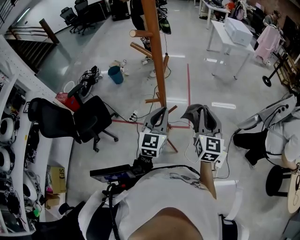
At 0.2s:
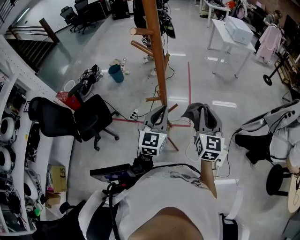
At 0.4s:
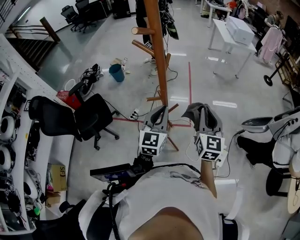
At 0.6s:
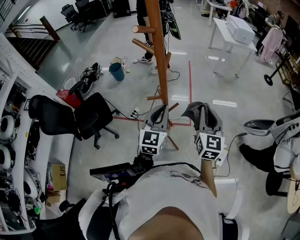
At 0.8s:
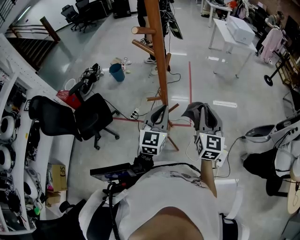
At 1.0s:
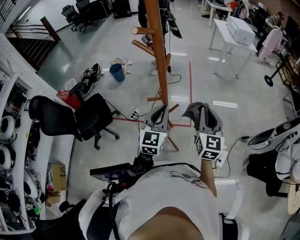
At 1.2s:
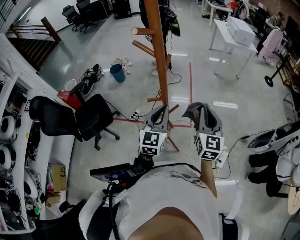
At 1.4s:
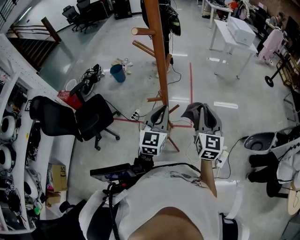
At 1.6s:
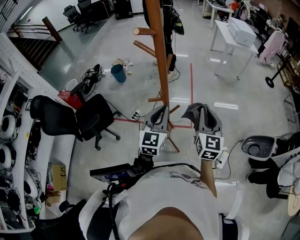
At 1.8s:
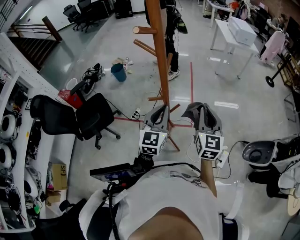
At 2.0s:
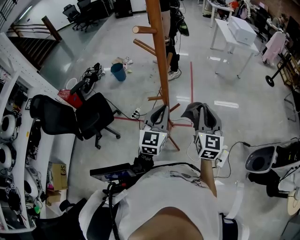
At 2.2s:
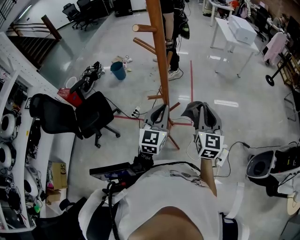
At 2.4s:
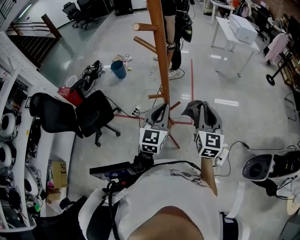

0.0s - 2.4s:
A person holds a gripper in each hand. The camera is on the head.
0.0s - 1.2s: Neither gripper changes place.
1.2s - 2.4s: Both grippers stay put.

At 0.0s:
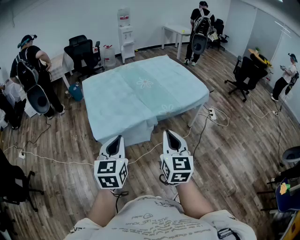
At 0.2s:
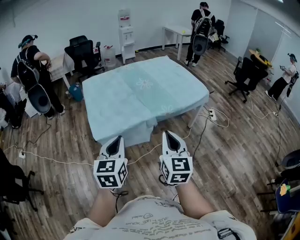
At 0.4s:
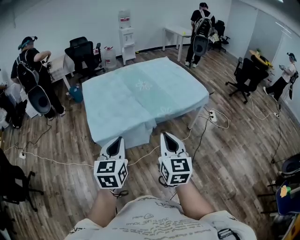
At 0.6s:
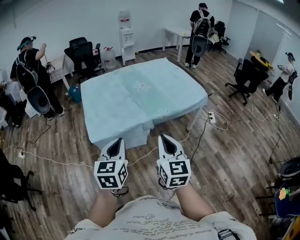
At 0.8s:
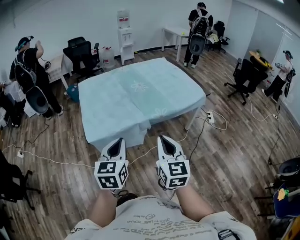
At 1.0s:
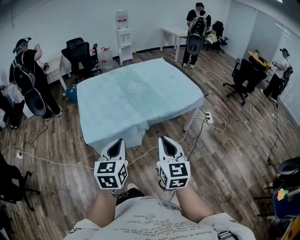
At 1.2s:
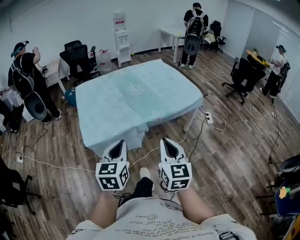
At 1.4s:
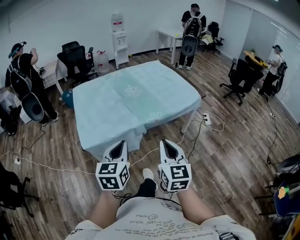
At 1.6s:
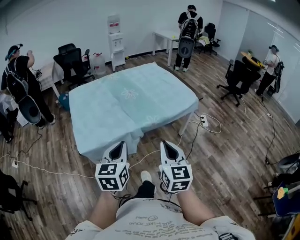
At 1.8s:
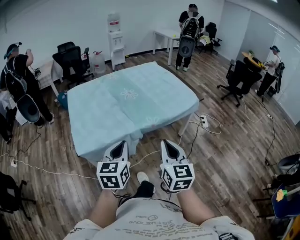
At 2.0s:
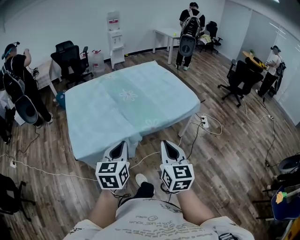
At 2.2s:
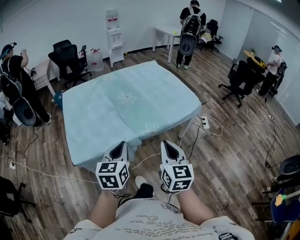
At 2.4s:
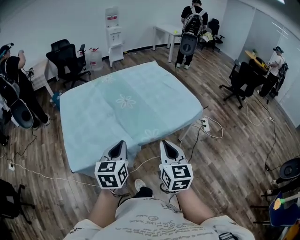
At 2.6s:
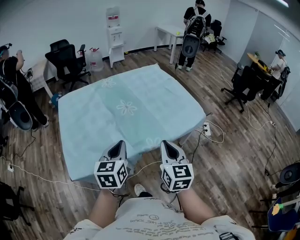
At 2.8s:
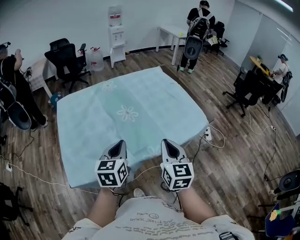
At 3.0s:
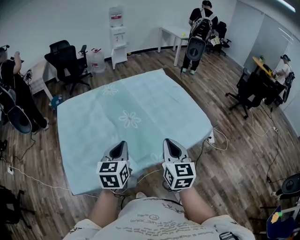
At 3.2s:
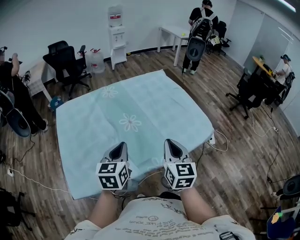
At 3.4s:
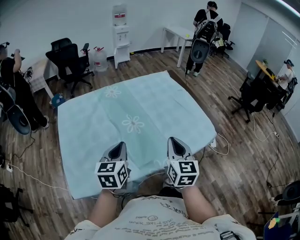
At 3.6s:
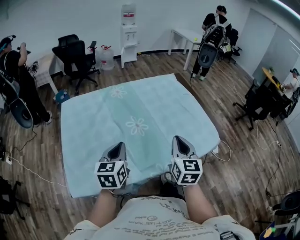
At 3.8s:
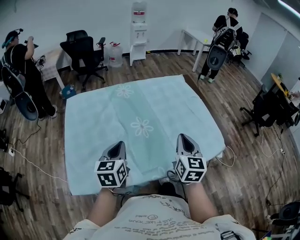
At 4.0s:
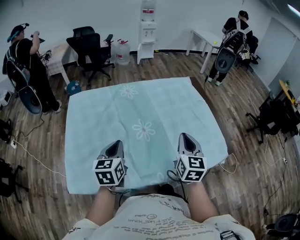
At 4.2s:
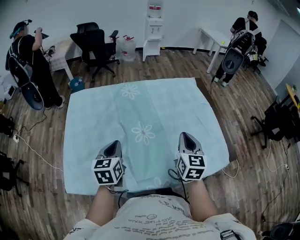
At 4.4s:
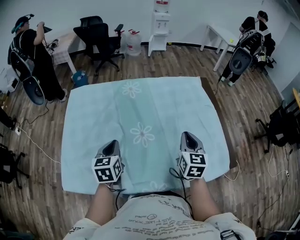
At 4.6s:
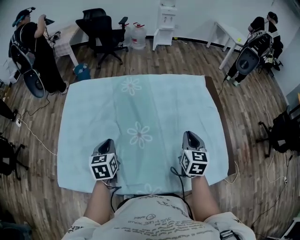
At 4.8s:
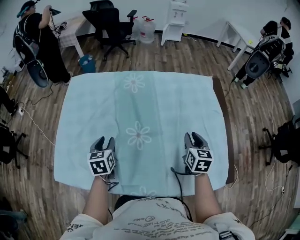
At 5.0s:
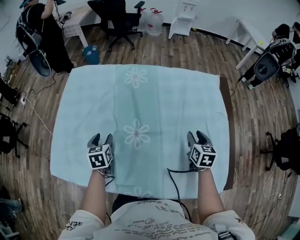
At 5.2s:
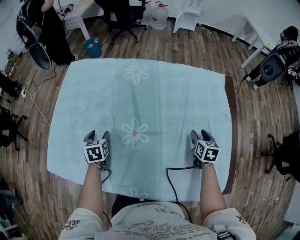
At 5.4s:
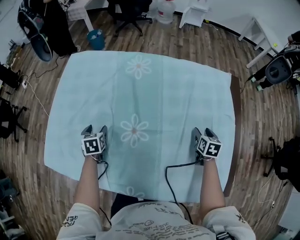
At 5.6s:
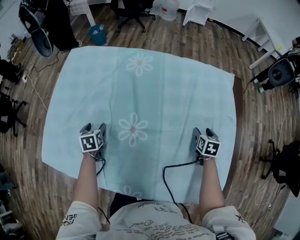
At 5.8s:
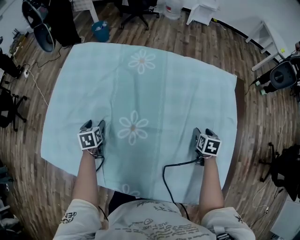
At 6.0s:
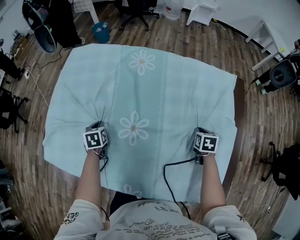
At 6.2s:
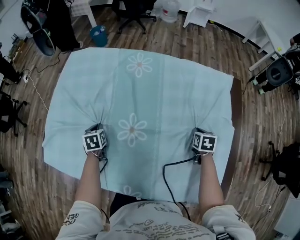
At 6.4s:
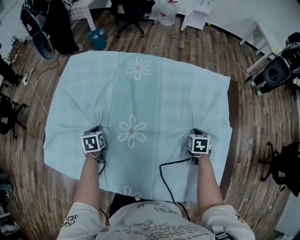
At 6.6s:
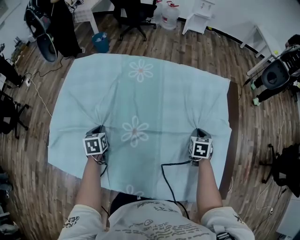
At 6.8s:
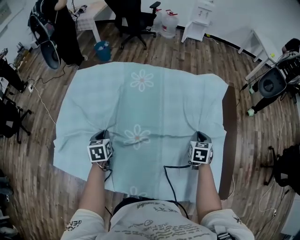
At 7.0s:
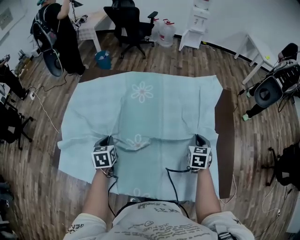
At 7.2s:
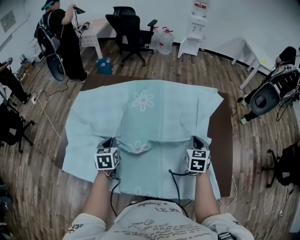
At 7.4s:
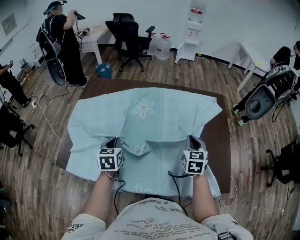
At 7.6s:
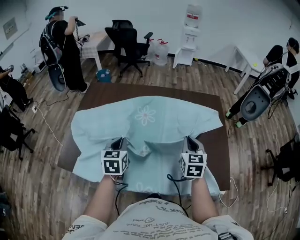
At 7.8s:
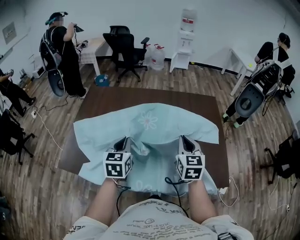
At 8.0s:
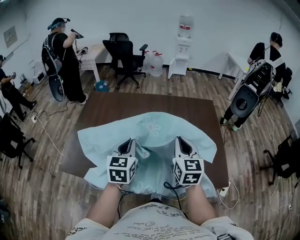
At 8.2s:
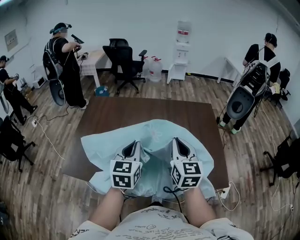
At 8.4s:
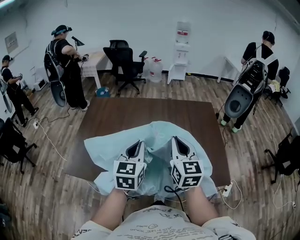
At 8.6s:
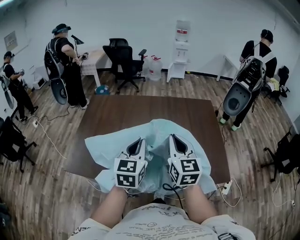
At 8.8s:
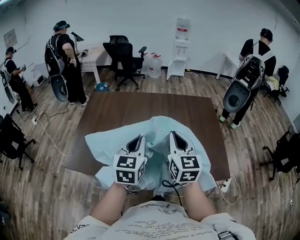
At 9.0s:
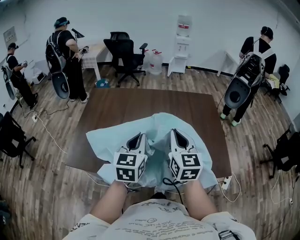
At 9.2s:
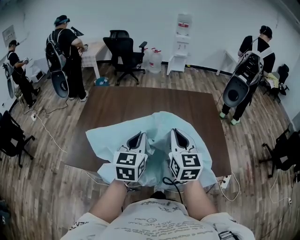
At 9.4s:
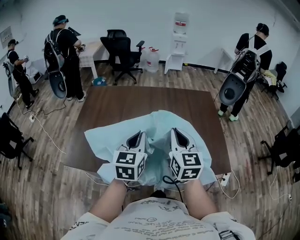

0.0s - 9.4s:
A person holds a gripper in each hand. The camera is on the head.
0.0s - 1.6s: The left gripper moves to the right and forward, approximately 15 cm, while the right gripper shifts roughly 10 cm to the right.
1.6s - 3.2s: Both grippers move forward, approximately 35 cm.
3.2s - 4.8s: The left gripper shifts by roughly 25 cm, swivels approximately 40 degrees, and opens up. Meanwhile the right gripper shifts by about 40 cm, rotates approximately 30 degrees, and opens.
4.8s - 6.2s: The right gripper is displaced downward, forward and to the right by approximately 20 cm, turns by some 30 degrees, and closes its fingers, while the left gripper heads downward, covering about 15 cm, changes its angle by about 20 degrees, and closes up.
6.2s - 7.8s: The left gripper goes about 35 cm upward, backward and to the right, and angles its fingers upward, by roughly 30 degrees. Meanwhile the right gripper goes approximately 35 cm upward, backward and to the left, and angles its fingers upward, by some 40 degrees.
7.8s - 9.4s: The left gripper shifts approximately 10 cm backward and upward, while the right gripper heads backward, to the left and upward, covering some 15 cm.

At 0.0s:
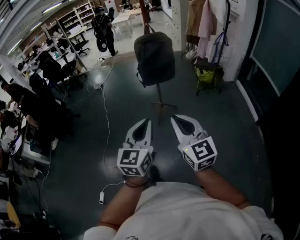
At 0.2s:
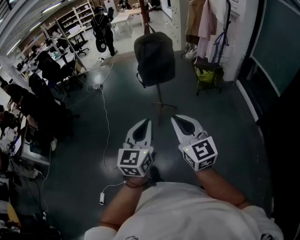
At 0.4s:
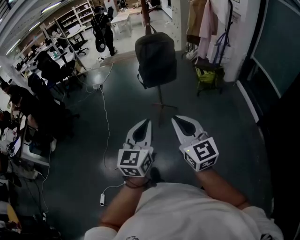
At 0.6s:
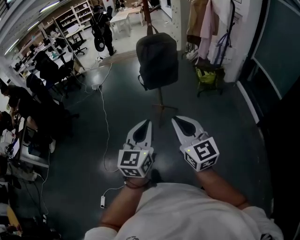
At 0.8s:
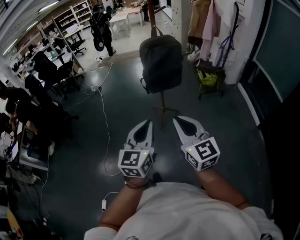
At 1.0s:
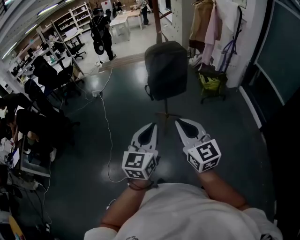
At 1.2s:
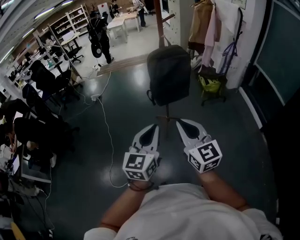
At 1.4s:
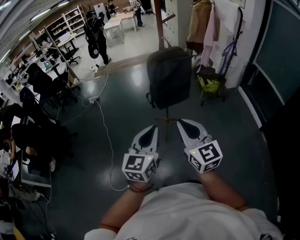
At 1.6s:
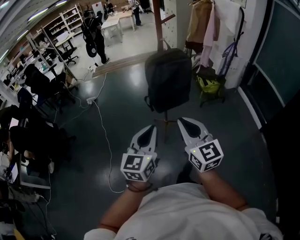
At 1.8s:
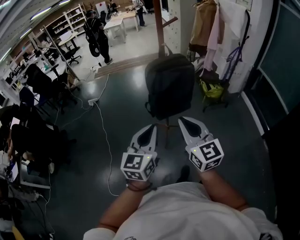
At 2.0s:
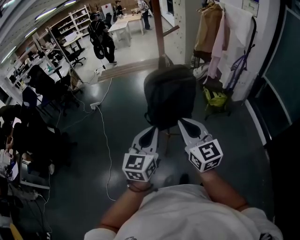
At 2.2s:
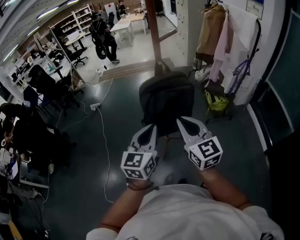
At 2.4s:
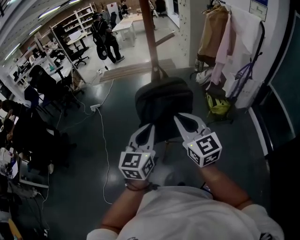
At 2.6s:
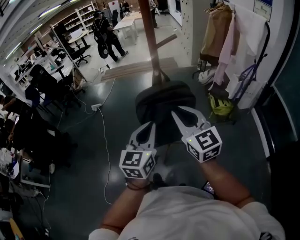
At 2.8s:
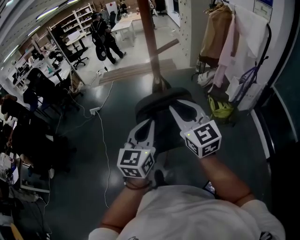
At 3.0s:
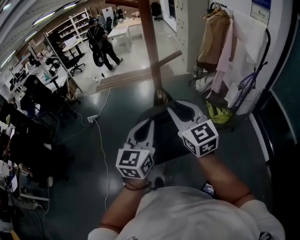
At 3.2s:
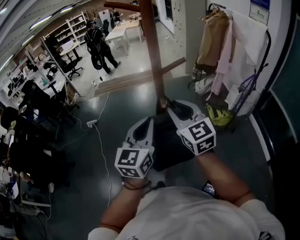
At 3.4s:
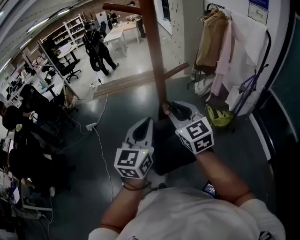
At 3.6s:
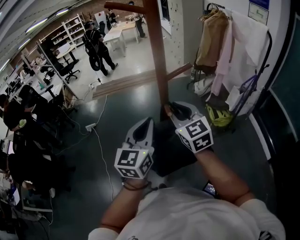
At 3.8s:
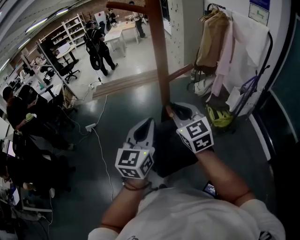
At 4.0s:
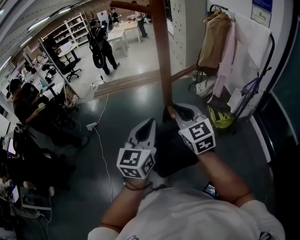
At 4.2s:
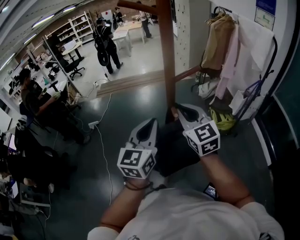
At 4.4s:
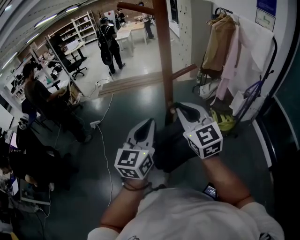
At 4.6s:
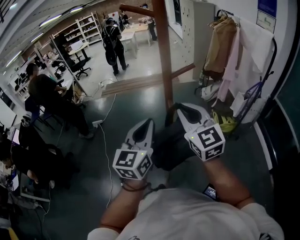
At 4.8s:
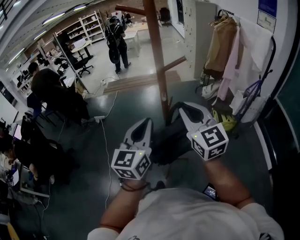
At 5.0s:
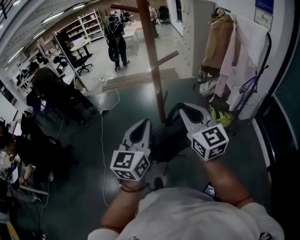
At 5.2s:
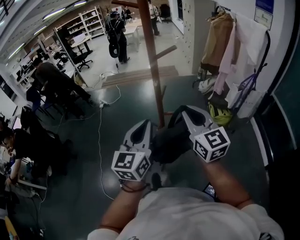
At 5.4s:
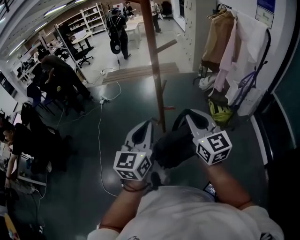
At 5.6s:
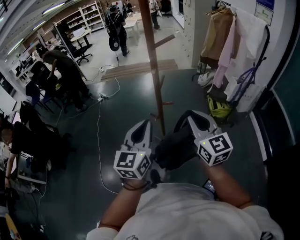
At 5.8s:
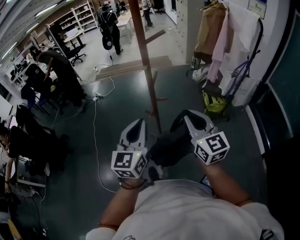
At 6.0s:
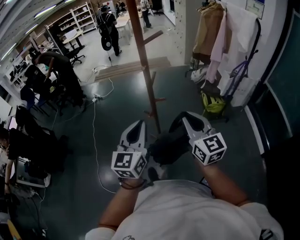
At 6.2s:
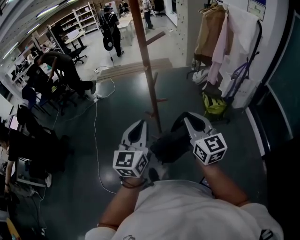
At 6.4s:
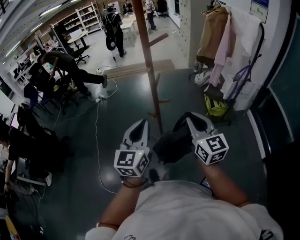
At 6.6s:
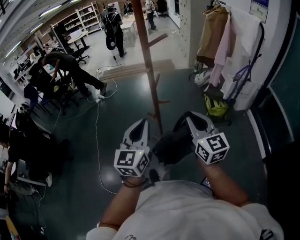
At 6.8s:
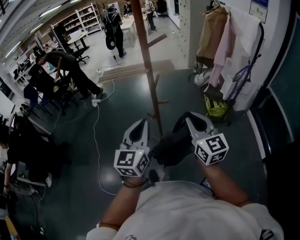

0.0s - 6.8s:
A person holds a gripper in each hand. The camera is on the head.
0.0s - 1.4s: Both grippers travel together forward and to the left, roughly 30 cm.
1.4s - 2.8s: The two grippers travel together, forward, about 40 cm.
2.8s - 4.0s: Both grippers move forward, approximately 15 cm.
4.0s - 5.4s: Both grippers move backward, about 20 cm.
5.4s - 6.8s: The right gripper ends up about 5 cm from where it was.

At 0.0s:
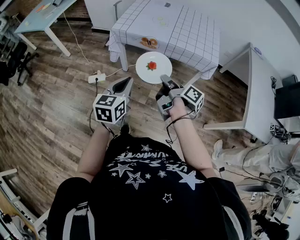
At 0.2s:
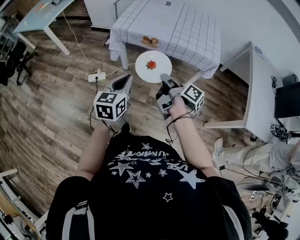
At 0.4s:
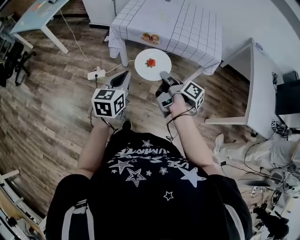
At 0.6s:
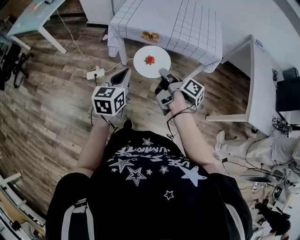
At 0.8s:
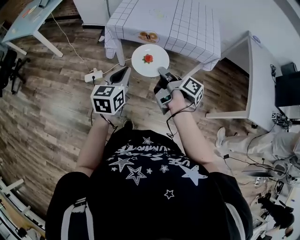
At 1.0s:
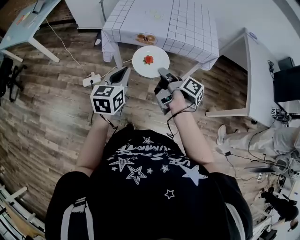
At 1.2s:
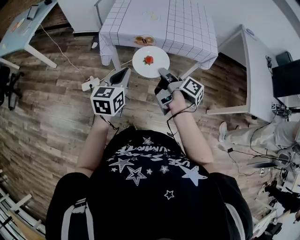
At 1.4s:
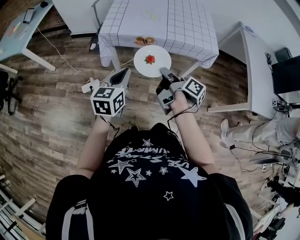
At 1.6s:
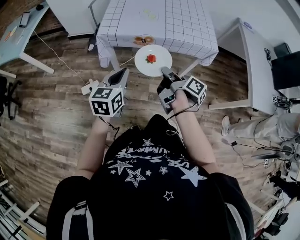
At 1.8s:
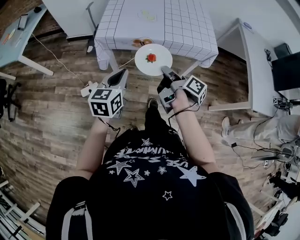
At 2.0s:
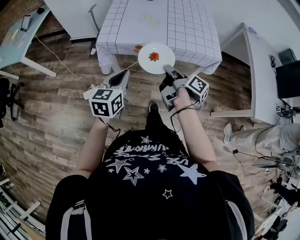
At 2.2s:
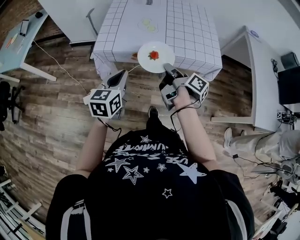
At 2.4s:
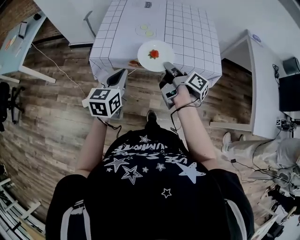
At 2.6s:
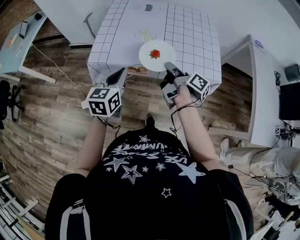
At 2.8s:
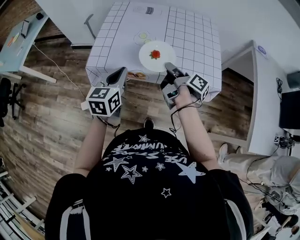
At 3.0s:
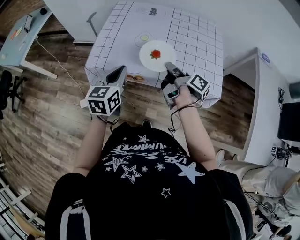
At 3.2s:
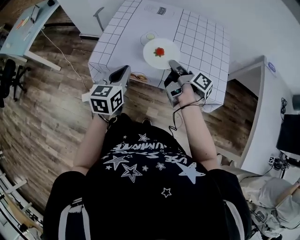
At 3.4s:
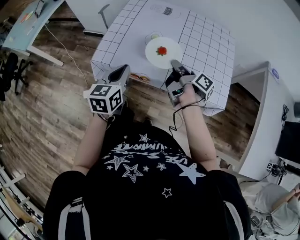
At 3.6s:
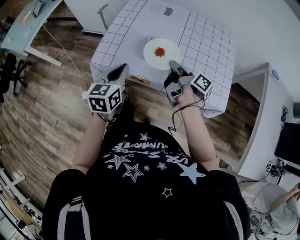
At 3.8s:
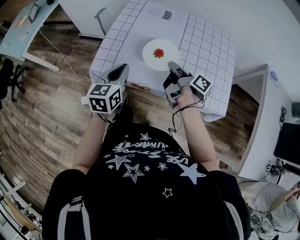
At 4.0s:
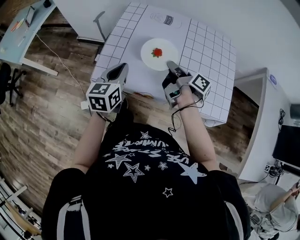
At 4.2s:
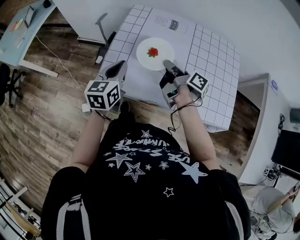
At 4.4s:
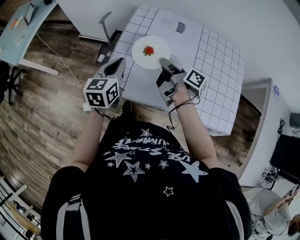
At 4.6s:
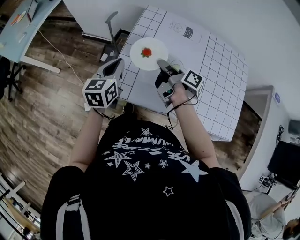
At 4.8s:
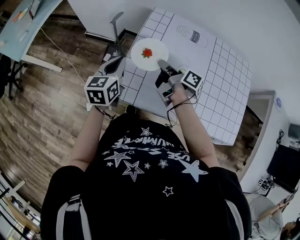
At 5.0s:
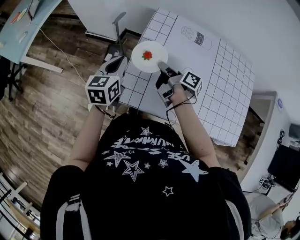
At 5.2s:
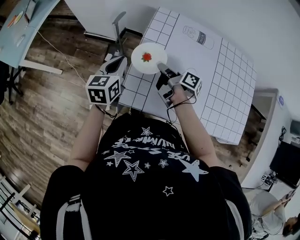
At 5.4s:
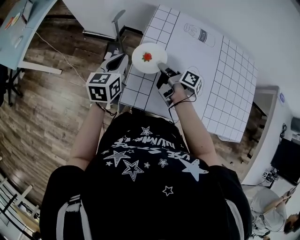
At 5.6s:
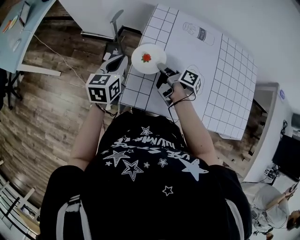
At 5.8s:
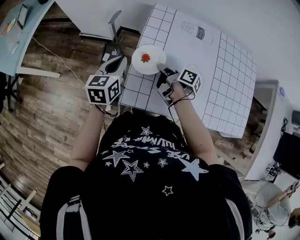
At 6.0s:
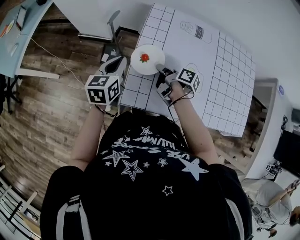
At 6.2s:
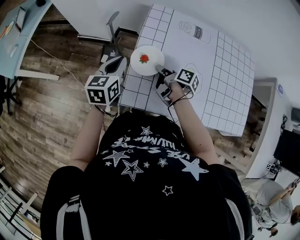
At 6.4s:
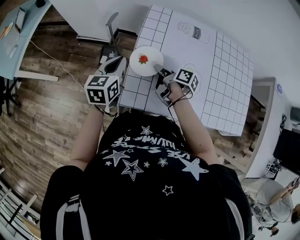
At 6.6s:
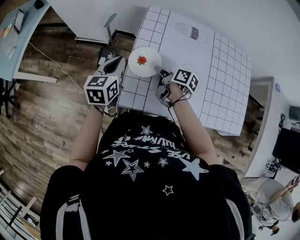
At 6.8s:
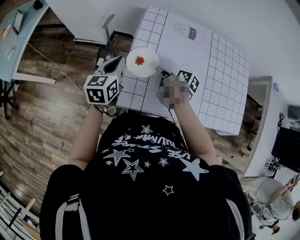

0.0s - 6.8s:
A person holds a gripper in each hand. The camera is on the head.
0.0s - 1.4s: The left gripper moves approximately 15 cm.
1.4s - 2.8s: The left gripper shifts by some 20 cm.
2.8s - 4.0s: The left gripper ends up roughly 15 cm from where it was.
4.0s - 5.4s: The left gripper moves approximately 25 cm.
